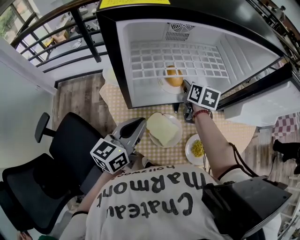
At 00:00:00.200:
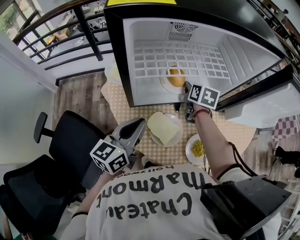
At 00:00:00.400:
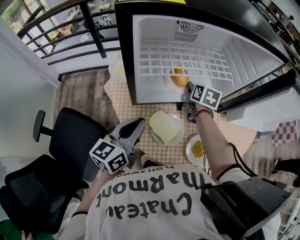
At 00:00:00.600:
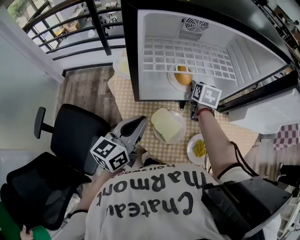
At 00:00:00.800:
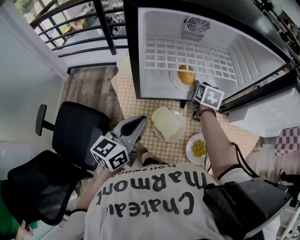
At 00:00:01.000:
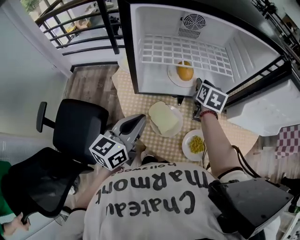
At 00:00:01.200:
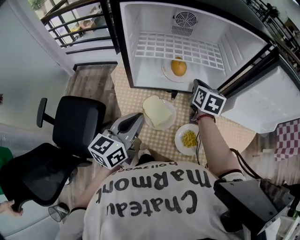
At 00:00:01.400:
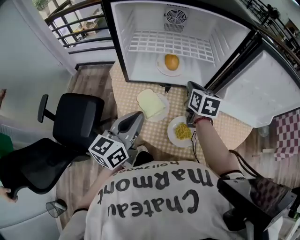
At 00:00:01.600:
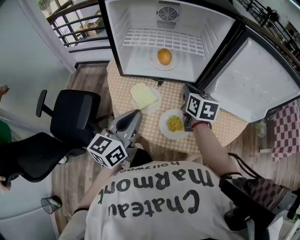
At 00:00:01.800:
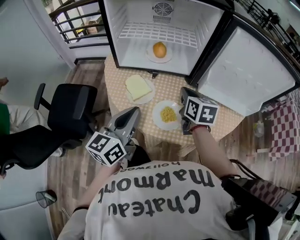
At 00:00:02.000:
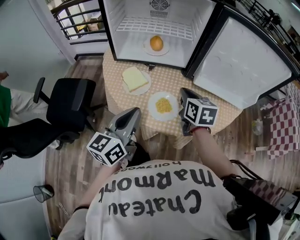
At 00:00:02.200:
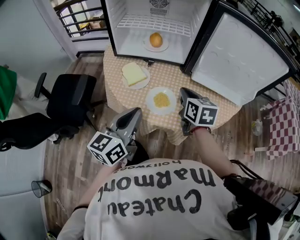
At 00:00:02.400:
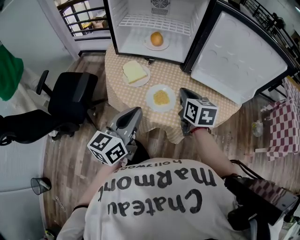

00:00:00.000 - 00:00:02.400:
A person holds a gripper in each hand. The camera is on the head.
00:00:00.000 - 00:00:01.200: The right gripper heads backward and upward, covering about 10 cm, and closes up. Meanwhile the left gripper goes some 10 cm backward and to the right.
00:00:01.200 - 00:00:02.400: The grippers both shift backward and to the right by approximately 25 cm. The right gripper turns by approximately 20 degrees.

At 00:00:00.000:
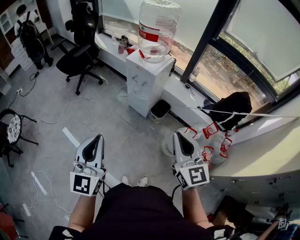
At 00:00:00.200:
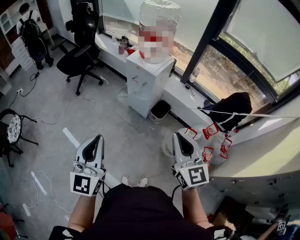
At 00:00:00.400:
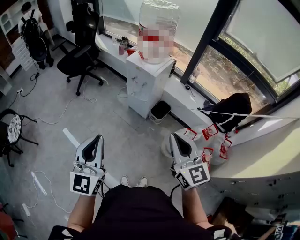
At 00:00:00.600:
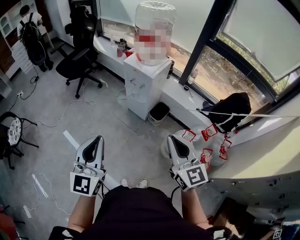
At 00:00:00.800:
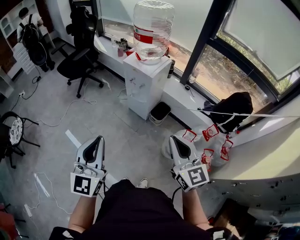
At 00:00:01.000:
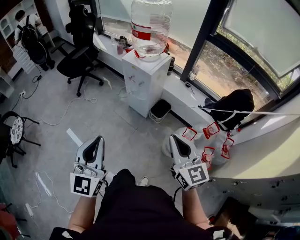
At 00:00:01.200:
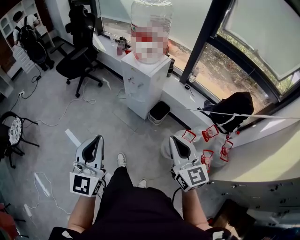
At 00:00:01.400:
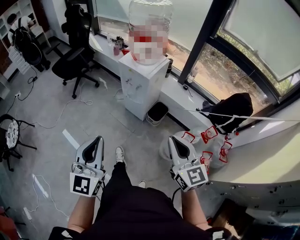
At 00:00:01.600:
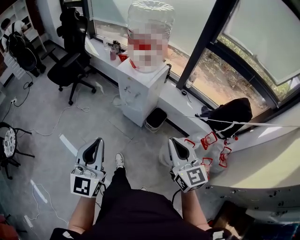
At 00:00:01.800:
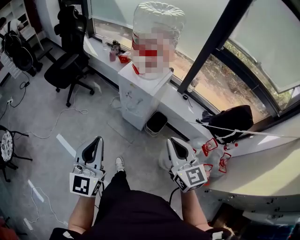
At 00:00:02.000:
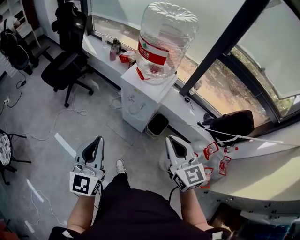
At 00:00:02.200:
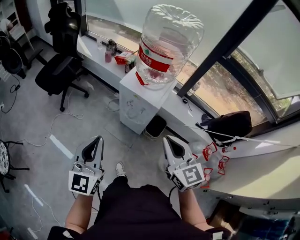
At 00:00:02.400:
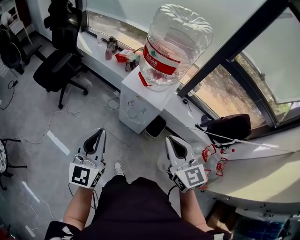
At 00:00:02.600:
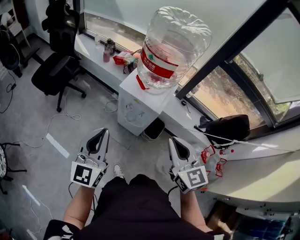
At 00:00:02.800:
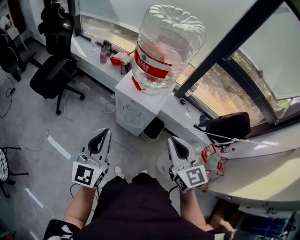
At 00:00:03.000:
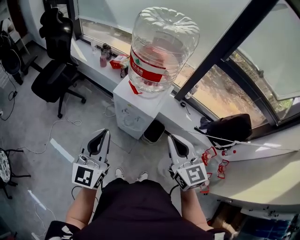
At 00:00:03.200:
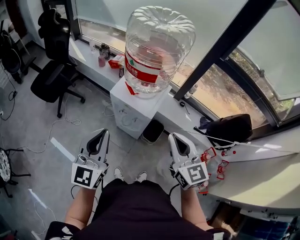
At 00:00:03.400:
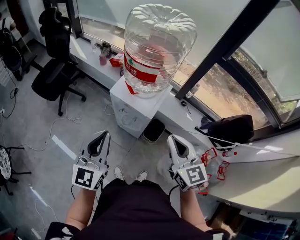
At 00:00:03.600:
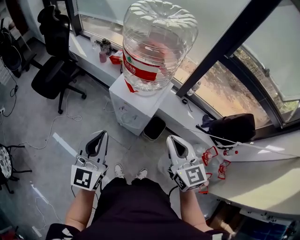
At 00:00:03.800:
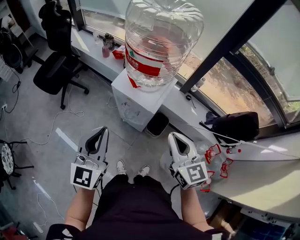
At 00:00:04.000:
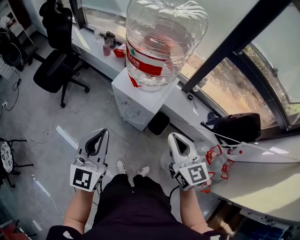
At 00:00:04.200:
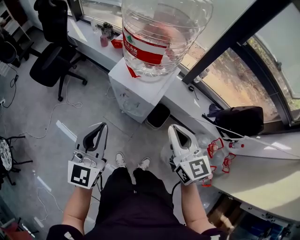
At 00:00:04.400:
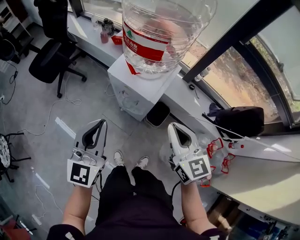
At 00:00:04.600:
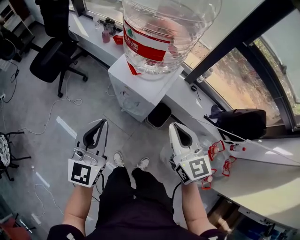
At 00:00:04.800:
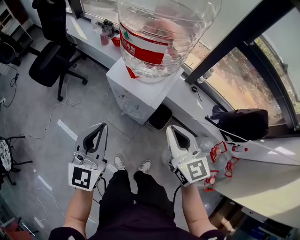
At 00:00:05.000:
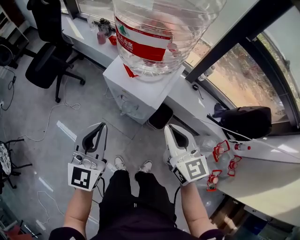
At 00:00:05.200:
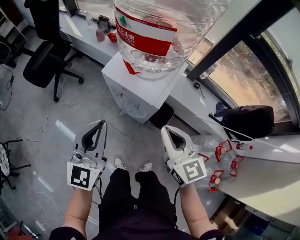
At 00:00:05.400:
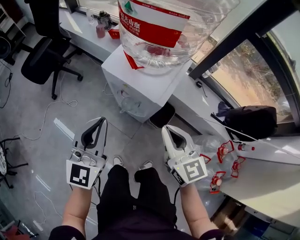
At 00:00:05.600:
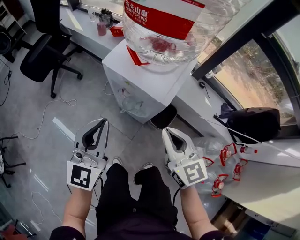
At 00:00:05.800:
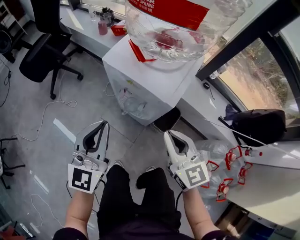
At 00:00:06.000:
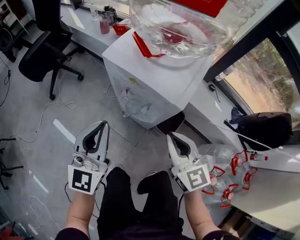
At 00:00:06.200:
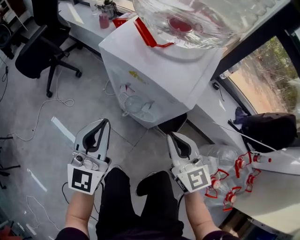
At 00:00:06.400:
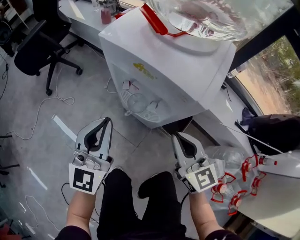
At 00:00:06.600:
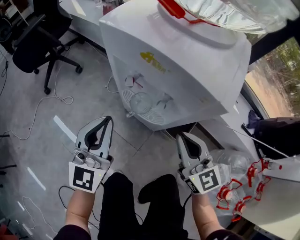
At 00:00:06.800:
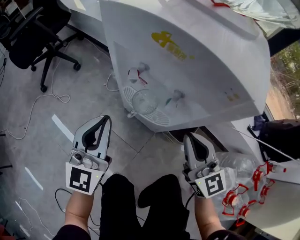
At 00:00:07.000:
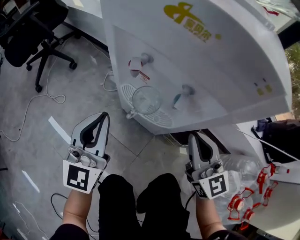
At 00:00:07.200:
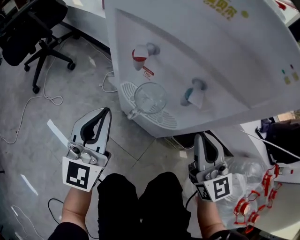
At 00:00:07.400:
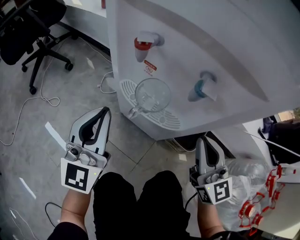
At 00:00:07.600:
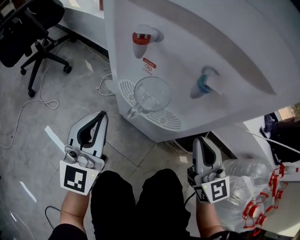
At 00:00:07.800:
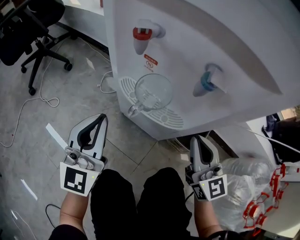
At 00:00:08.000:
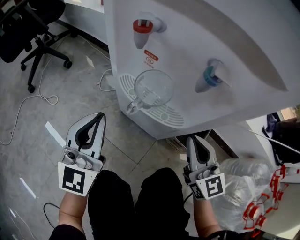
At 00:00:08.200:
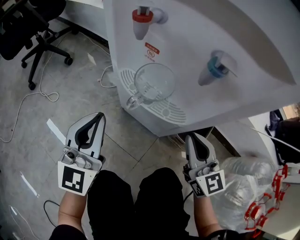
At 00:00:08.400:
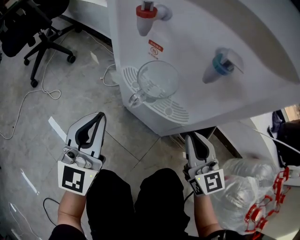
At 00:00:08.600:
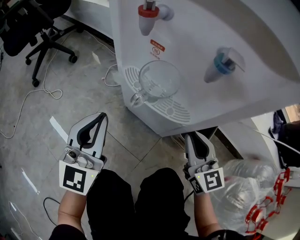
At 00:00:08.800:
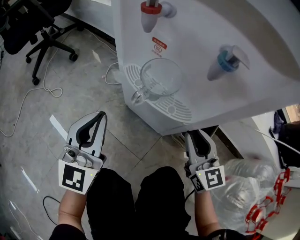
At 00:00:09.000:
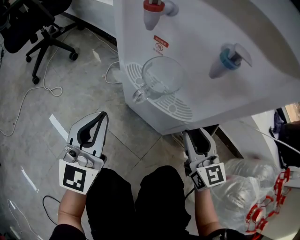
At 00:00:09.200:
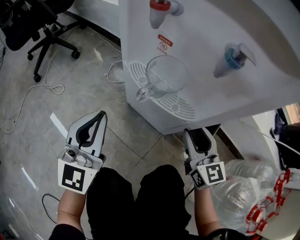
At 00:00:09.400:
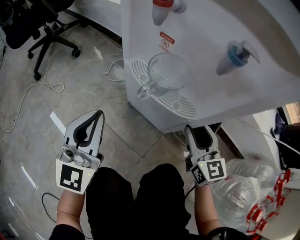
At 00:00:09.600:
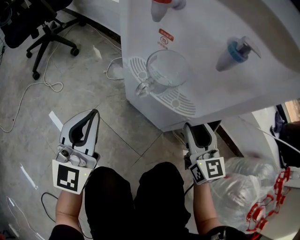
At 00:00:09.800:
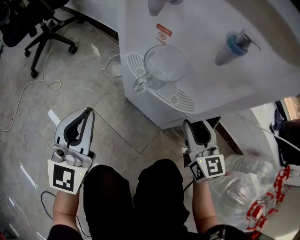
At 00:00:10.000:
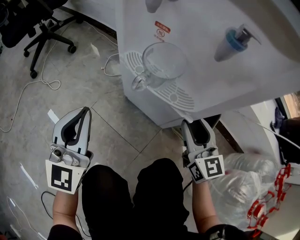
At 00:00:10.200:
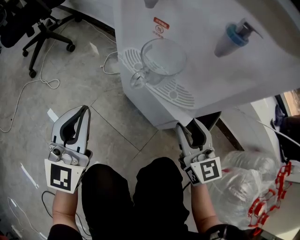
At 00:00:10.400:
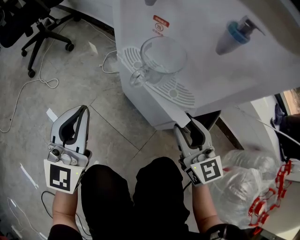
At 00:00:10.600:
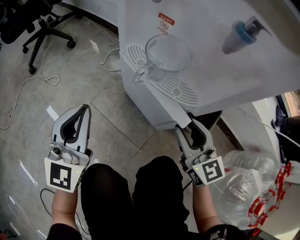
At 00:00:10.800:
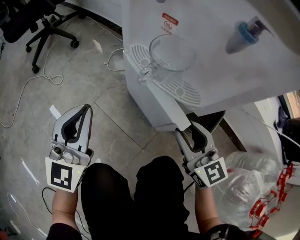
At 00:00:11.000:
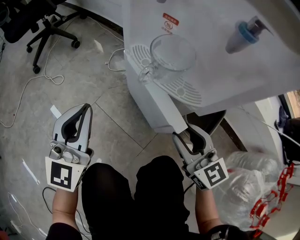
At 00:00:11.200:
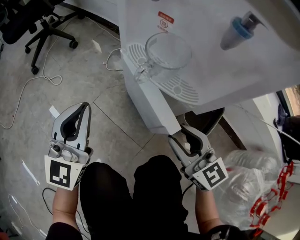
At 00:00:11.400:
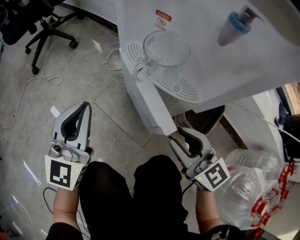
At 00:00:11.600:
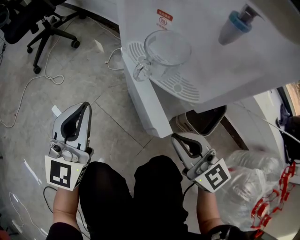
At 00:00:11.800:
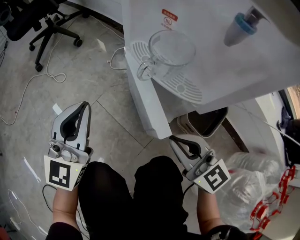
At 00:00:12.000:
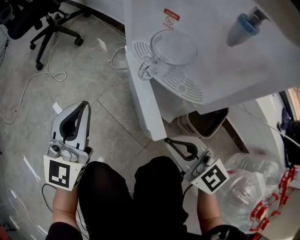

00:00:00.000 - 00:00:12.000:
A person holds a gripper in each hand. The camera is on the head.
00:00:00.000 - 00:00:01.600: The two grippers go some 10 cm forward.
00:00:01.600 - 00:00:03.000: The grippers both shift forward by about 25 cm.
00:00:03.000 - 00:00:04.400: The right gripper heads downward, covering some 5 cm, while the left gripper ends up approximately 5 cm from where it was.
00:00:04.400 - 00:00:06.000: The grippers both shift downward by about 25 cm.
00:00:06.000 - 00:00:07.600: The two grippers go approximately 30 cm downward.
00:00:07.600 - 00:00:09.000: The right gripper is displaced downward by approximately 10 cm, and opens. Meanwhile the left gripper moves roughly 5 cm.
00:00:09.000 - 00:00:10.400: The grippers move only a little.
00:00:10.400 - 00:00:12.000: The right gripper goes approximately 10 cm to the left, changes its angle by approximately 30 degrees, and closes.

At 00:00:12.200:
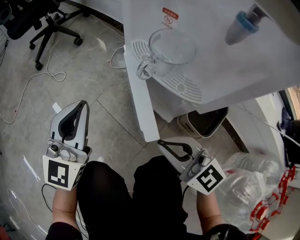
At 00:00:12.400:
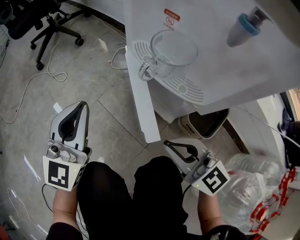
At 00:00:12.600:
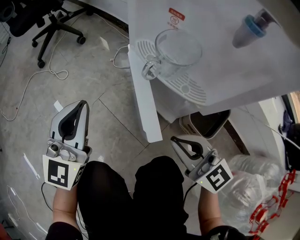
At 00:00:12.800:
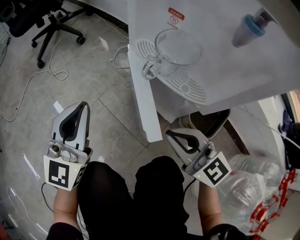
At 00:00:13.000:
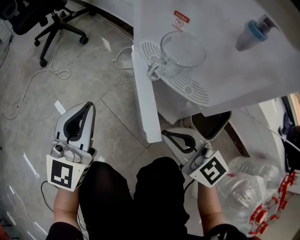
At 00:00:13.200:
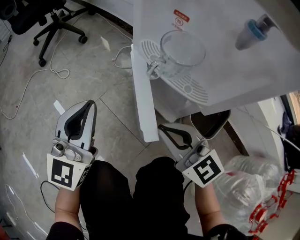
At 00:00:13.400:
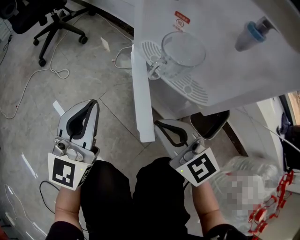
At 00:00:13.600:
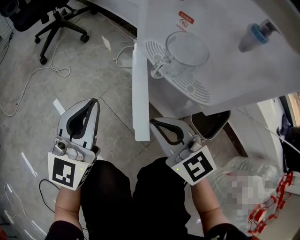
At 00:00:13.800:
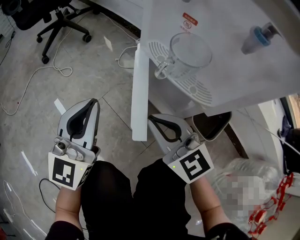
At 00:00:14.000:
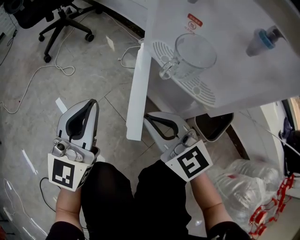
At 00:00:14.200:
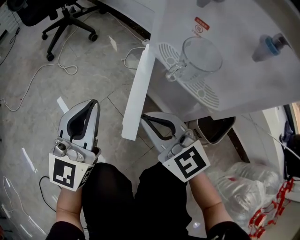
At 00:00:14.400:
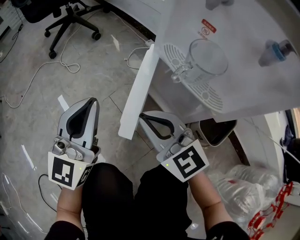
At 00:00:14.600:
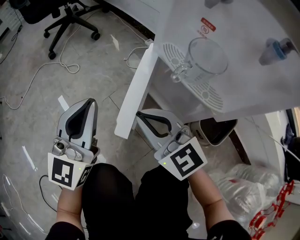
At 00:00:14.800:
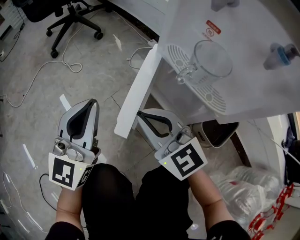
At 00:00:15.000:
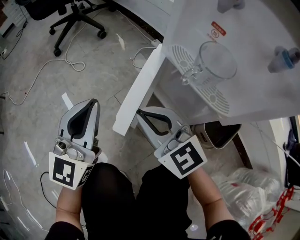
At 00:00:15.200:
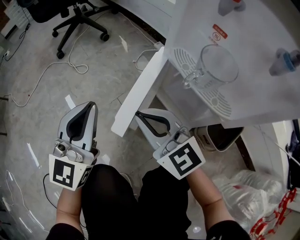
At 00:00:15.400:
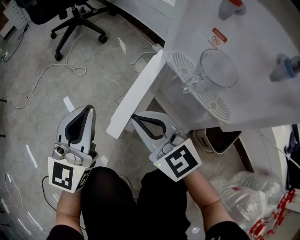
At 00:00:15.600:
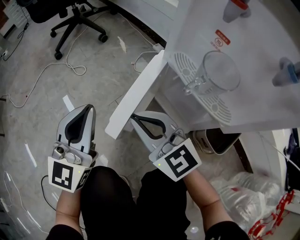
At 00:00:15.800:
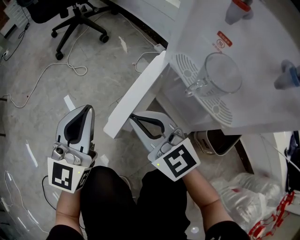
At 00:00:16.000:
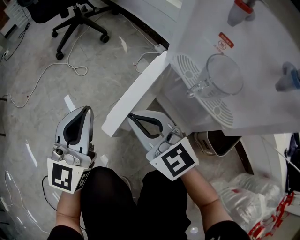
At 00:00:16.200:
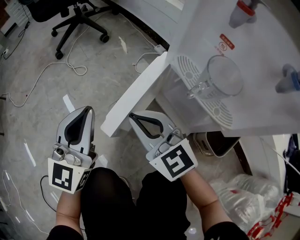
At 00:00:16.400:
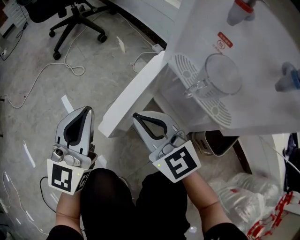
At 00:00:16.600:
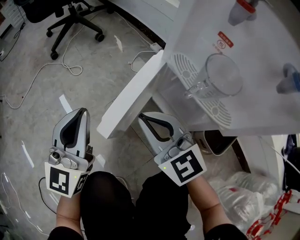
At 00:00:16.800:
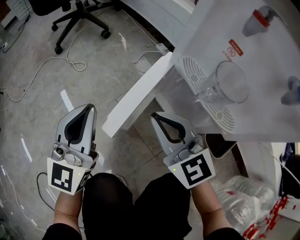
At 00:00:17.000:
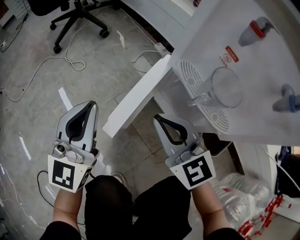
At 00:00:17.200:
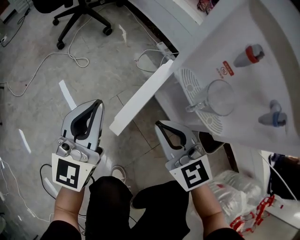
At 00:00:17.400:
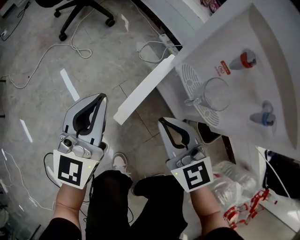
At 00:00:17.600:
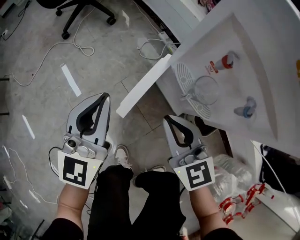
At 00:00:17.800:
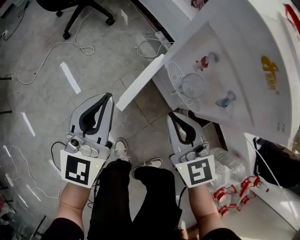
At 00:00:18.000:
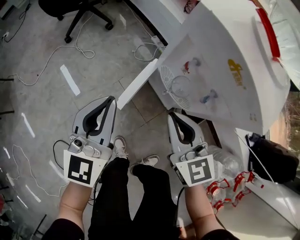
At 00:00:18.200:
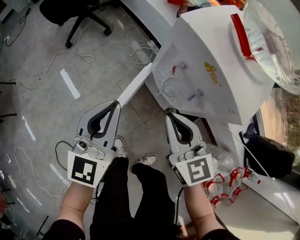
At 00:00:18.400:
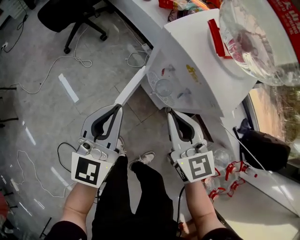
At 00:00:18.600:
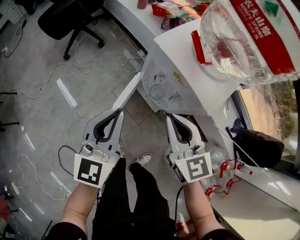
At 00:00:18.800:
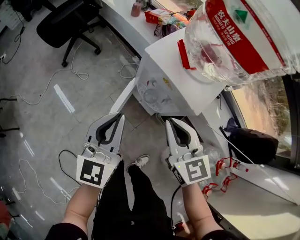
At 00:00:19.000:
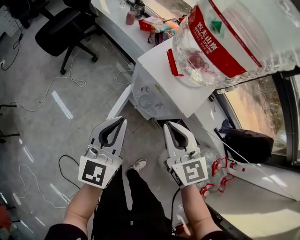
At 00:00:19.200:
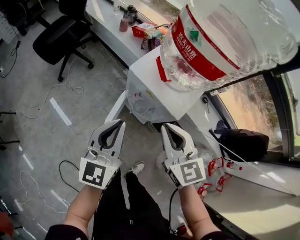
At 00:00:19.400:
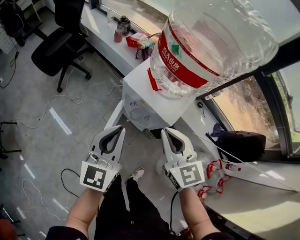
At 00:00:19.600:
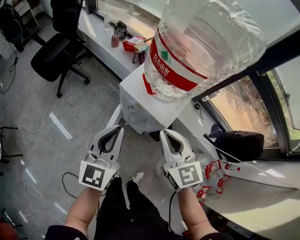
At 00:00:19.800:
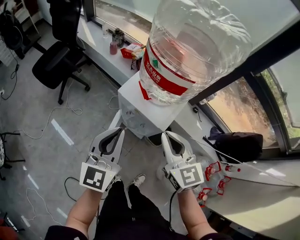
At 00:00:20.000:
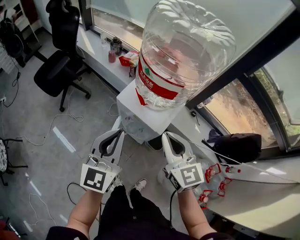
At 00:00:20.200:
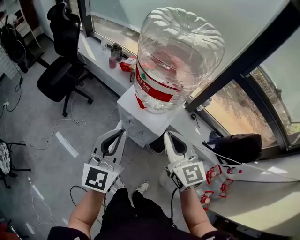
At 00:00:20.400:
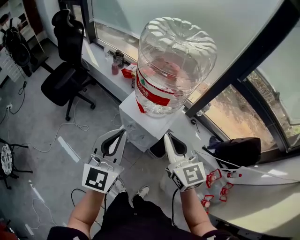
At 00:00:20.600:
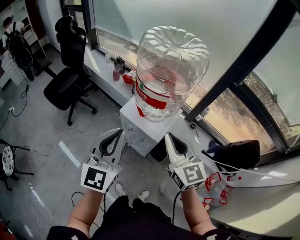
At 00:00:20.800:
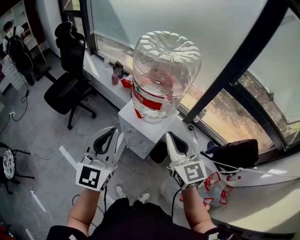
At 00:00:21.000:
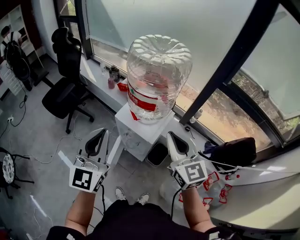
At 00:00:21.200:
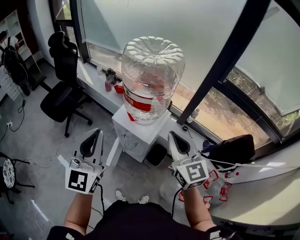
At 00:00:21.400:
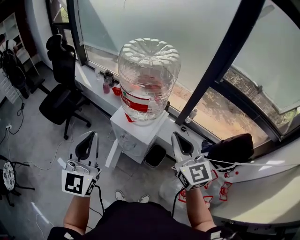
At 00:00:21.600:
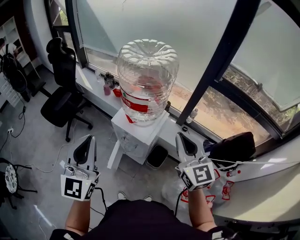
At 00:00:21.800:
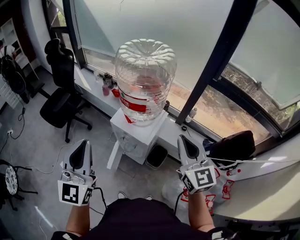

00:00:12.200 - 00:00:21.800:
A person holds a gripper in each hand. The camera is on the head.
00:00:12.200 - 00:00:13.800: The right gripper moves forward, about 5 cm.
00:00:13.800 - 00:00:15.400: Both grippers travel together to the left, approximately 5 cm.
00:00:15.400 - 00:00:17.000: The right gripper changes place by some 5 cm.
00:00:17.000 - 00:00:18.600: Both grippers move upward, roughly 40 cm. The right gripper swivels roughly 20 degrees.
00:00:18.600 - 00:00:20.200: The two grippers go approximately 25 cm upward and to the right.
00:00:20.200 - 00:00:21.800: The left gripper heads upward and backward, covering about 15 cm. The right gripper moves to the right, upward and backward, approximately 15 cm.
